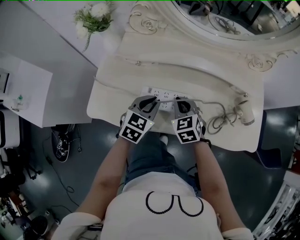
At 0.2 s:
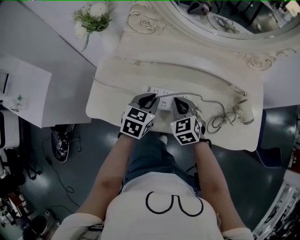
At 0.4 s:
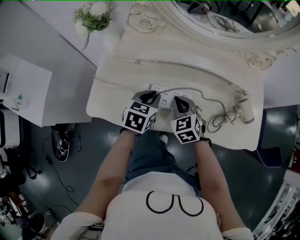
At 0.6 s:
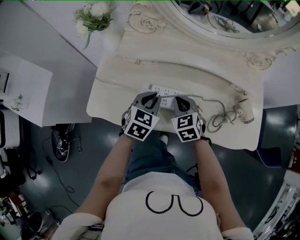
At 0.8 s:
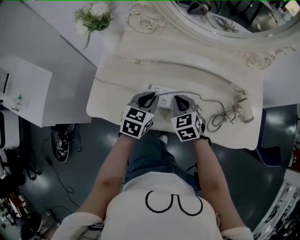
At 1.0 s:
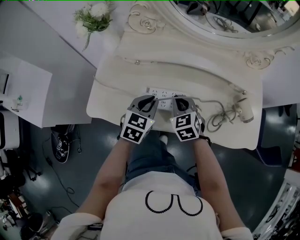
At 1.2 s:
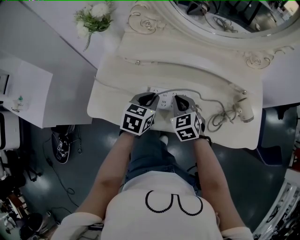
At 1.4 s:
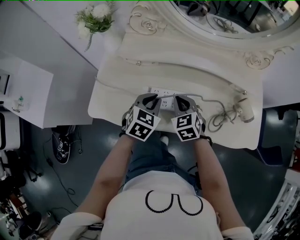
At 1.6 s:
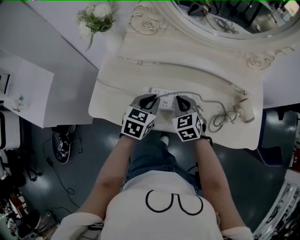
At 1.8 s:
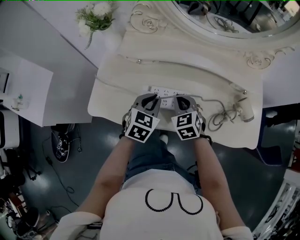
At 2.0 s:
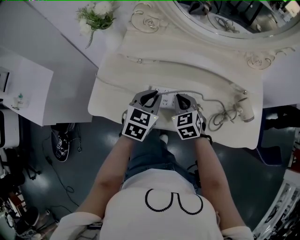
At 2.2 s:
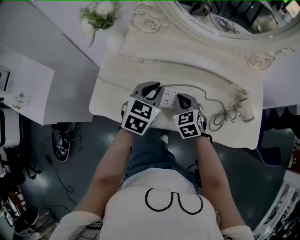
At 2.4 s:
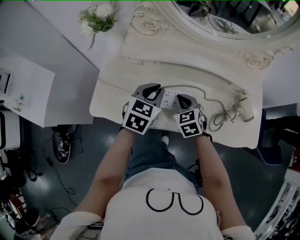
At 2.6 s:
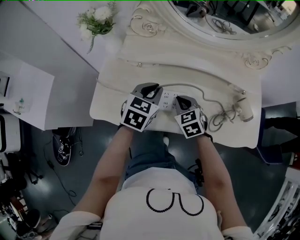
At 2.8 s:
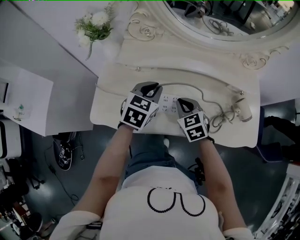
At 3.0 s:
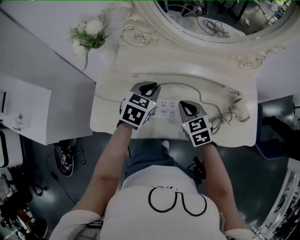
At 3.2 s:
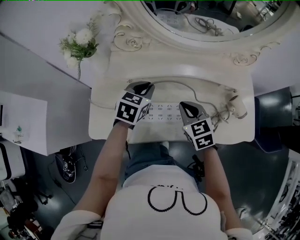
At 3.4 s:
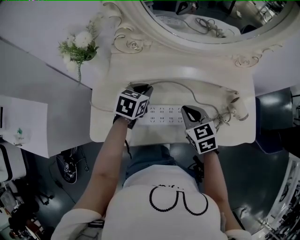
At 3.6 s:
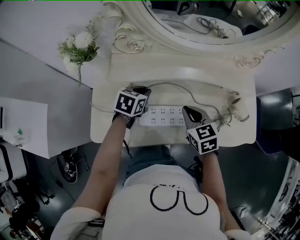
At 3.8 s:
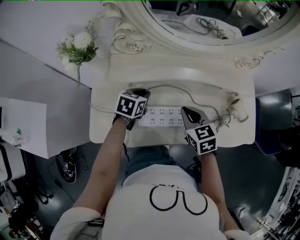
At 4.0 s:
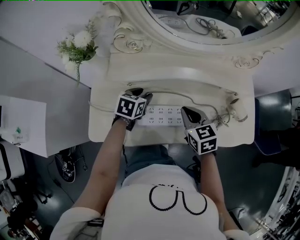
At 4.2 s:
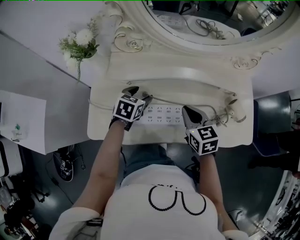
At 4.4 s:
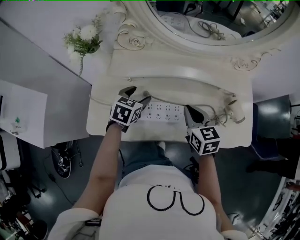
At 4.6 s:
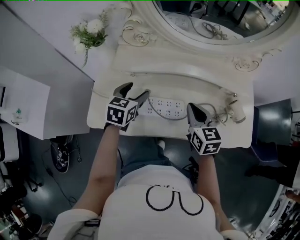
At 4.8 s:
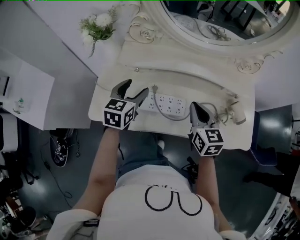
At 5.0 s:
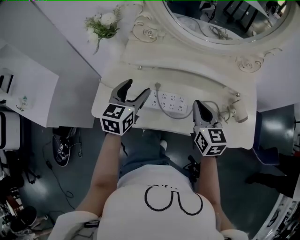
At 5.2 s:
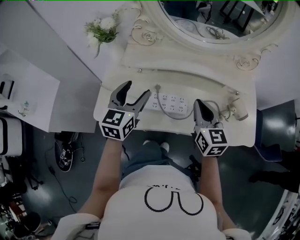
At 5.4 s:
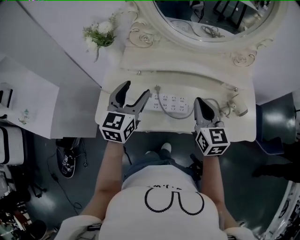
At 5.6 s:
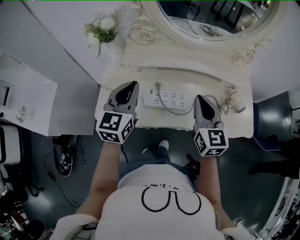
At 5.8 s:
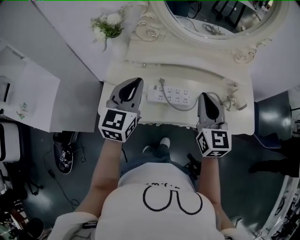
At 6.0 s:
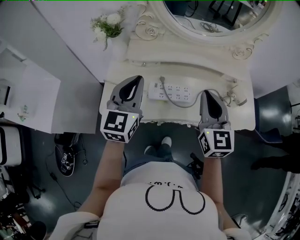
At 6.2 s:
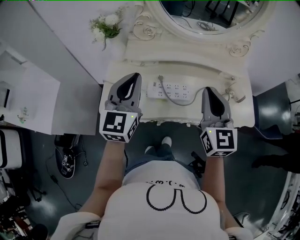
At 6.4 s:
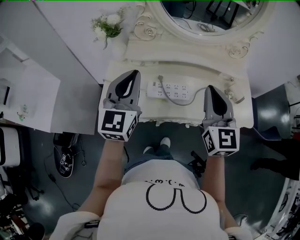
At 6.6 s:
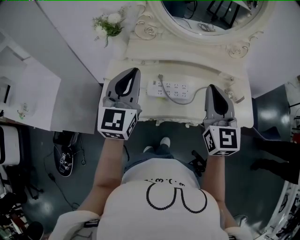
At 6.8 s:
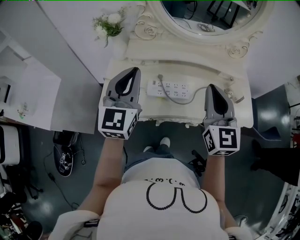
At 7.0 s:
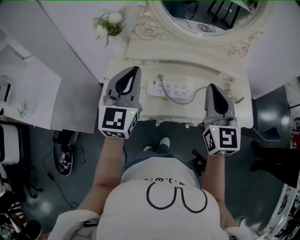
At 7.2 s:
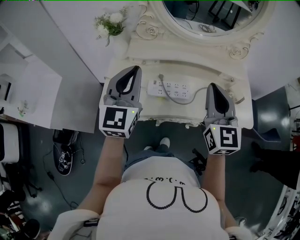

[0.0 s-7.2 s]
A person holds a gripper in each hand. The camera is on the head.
0.0 to 1.4 s: The grippers stay close to where they were, moving slightly.
1.4 to 2.8 s: The left gripper heads upward and forward, covering some 10 cm.
2.8 to 4.4 s: The left gripper goes about 5 cm downward, and opens its fingers, while the right gripper is displaced upward and to the right by approximately 10 cm, and rotates approximately 20 degrees.
4.4 to 5.8 s: The two grippers go approximately 20 cm upward and backward. The right gripper rotates roughly 30 degrees. Meanwhile the left gripper tilts its fingers some 30 degrees upward, and closes.
5.8 to 7.2 s: The two grippers go roughly 5 cm upward.

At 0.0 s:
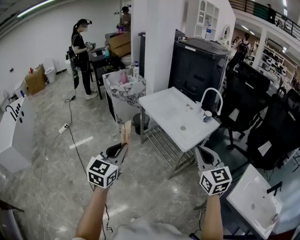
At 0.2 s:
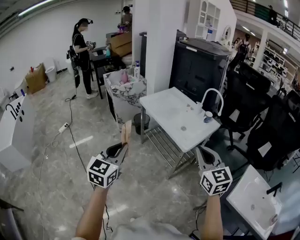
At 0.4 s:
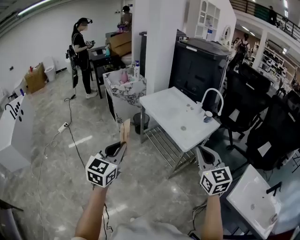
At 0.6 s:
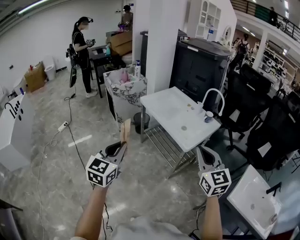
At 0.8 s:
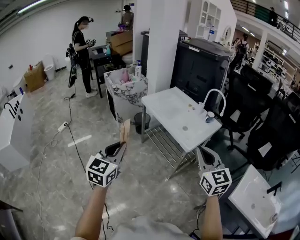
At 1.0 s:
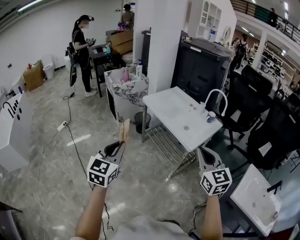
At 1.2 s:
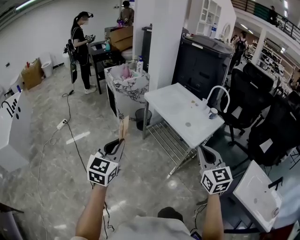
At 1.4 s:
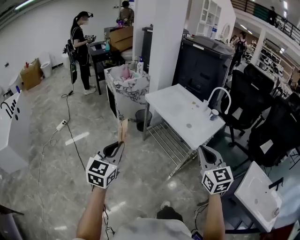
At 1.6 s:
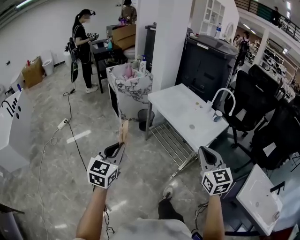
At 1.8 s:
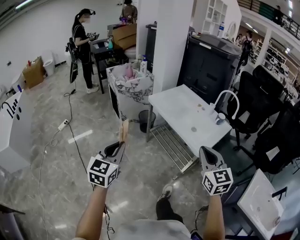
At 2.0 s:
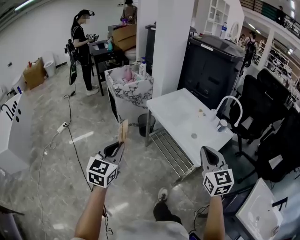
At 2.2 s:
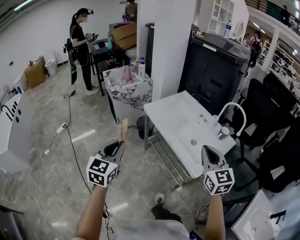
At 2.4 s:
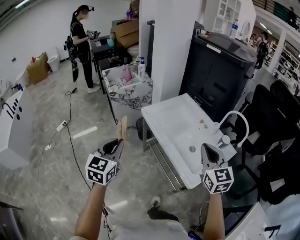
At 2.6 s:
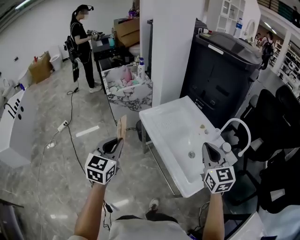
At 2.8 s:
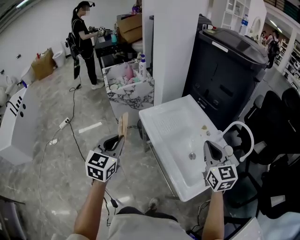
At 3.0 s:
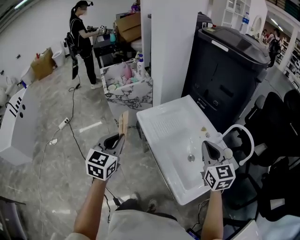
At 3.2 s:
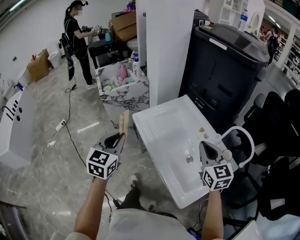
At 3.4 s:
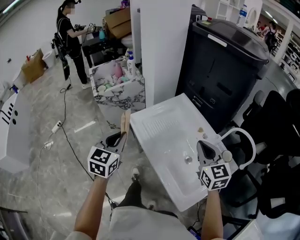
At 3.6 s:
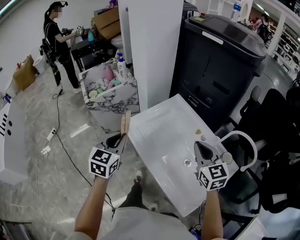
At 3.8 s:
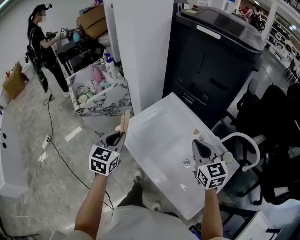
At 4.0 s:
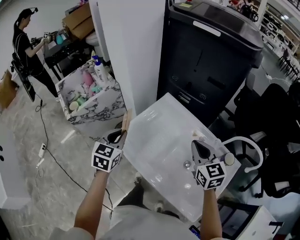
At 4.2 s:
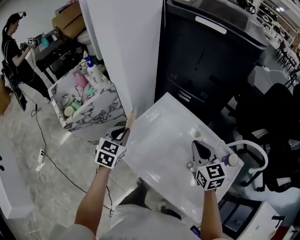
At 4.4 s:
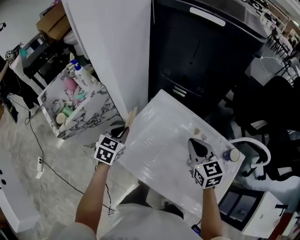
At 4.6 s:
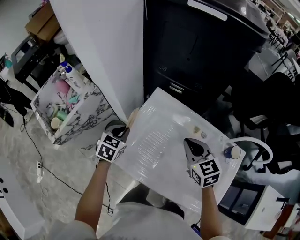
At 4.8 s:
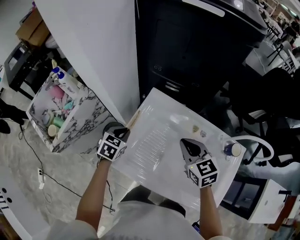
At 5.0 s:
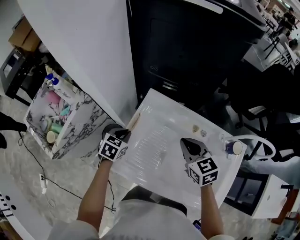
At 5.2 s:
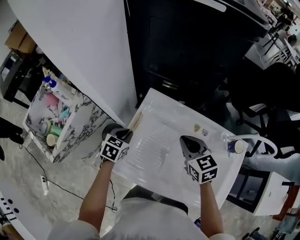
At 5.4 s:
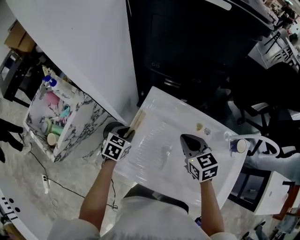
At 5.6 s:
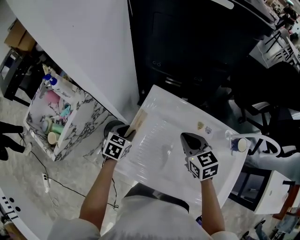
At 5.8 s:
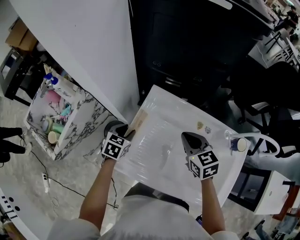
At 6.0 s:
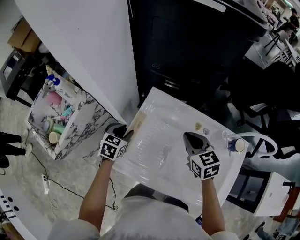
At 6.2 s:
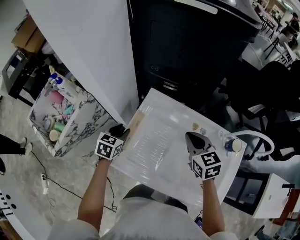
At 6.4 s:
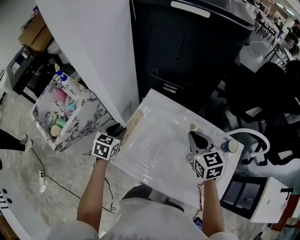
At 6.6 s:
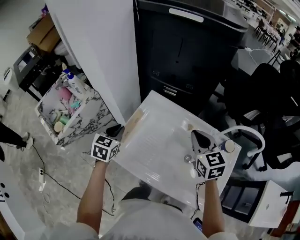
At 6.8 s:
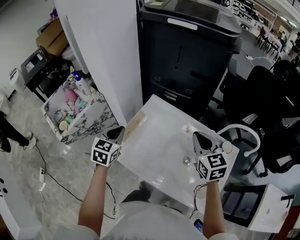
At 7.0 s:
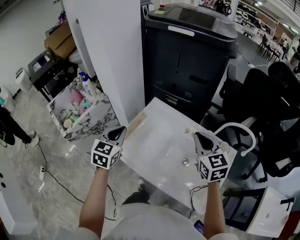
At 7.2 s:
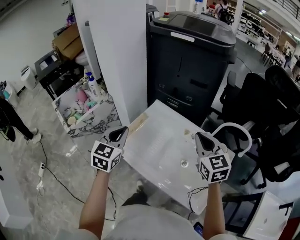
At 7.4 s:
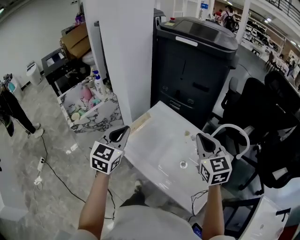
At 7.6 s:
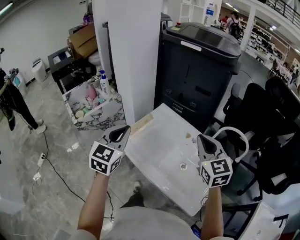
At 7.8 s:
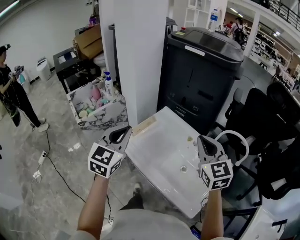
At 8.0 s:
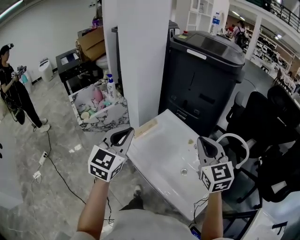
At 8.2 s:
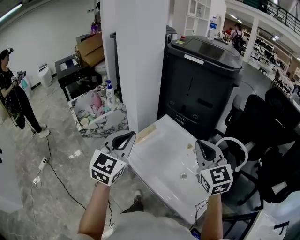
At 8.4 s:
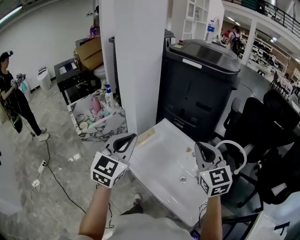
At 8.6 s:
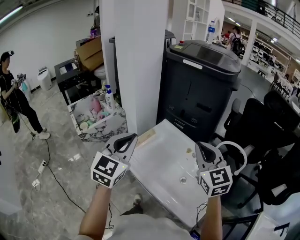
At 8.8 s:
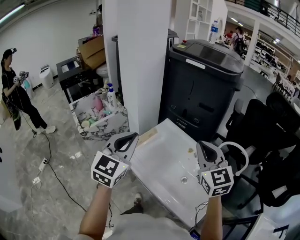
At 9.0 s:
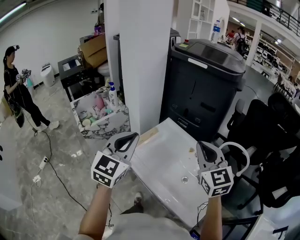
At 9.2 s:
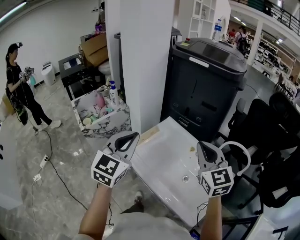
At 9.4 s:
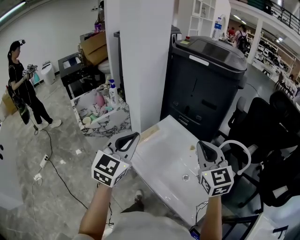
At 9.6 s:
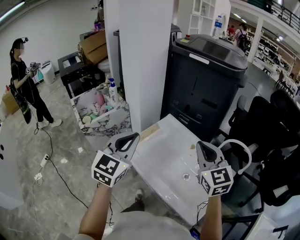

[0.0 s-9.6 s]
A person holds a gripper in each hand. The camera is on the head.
0.0 to 1.6 s: The two grippers go some 10 cm to the left.
1.6 to 3.2 s: The pair of grippers is taken forward, some 50 cm.
3.2 to 4.8 s: The left gripper changes place by about 50 cm, and swivels about 50 degrees, while the right gripper changes place by about 25 cm, and turns by some 30 degrees.
4.8 to 6.4 s: The right gripper heads to the right, covering some 5 cm, while the left gripper opens its fingers.
6.4 to 8.0 s: The right gripper heads upward and backward, covering about 25 cm, and swivels approximately 30 degrees; the left gripper shifts roughly 40 cm upward and backward, angles its fingers upward, by approximately 30 degrees, and closes up.
8.0 to 9.6 s: The grippers make only small movements.

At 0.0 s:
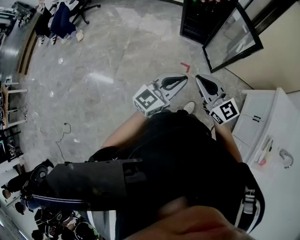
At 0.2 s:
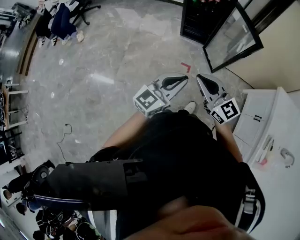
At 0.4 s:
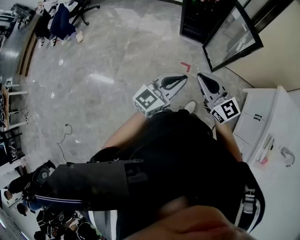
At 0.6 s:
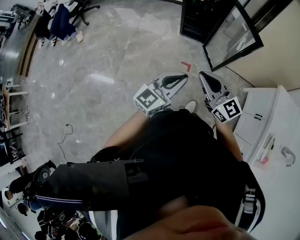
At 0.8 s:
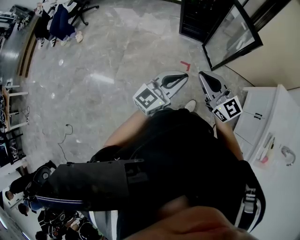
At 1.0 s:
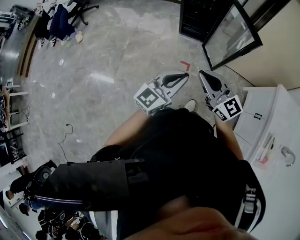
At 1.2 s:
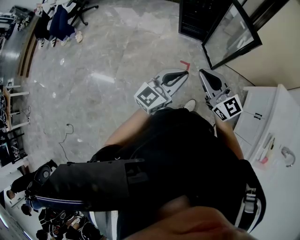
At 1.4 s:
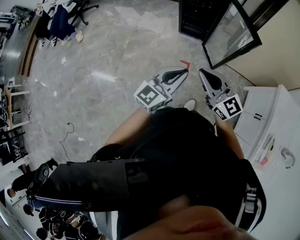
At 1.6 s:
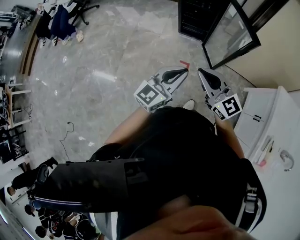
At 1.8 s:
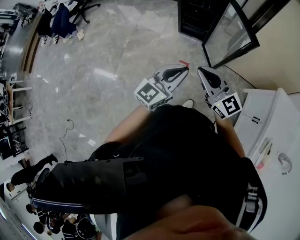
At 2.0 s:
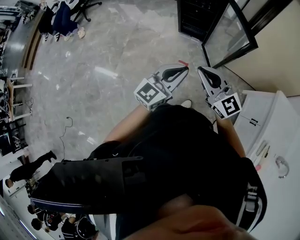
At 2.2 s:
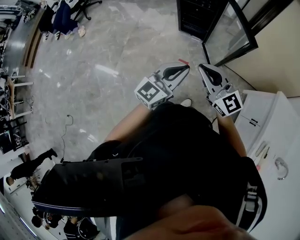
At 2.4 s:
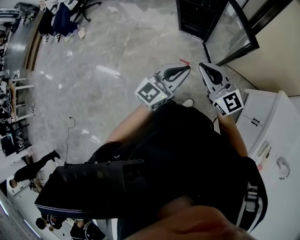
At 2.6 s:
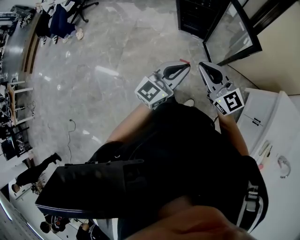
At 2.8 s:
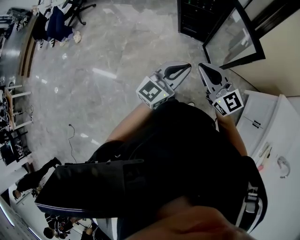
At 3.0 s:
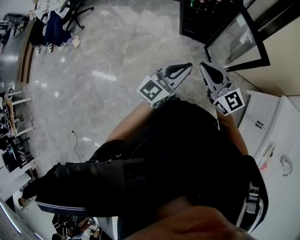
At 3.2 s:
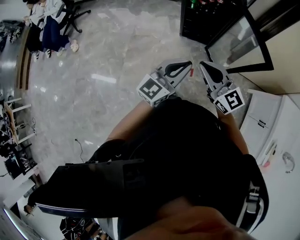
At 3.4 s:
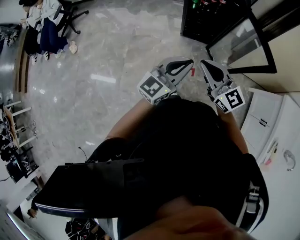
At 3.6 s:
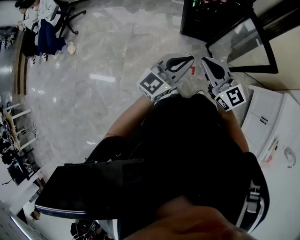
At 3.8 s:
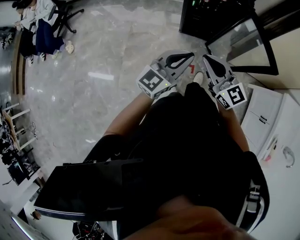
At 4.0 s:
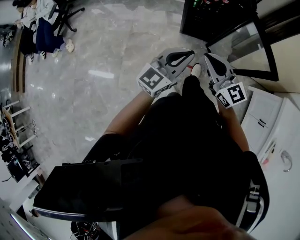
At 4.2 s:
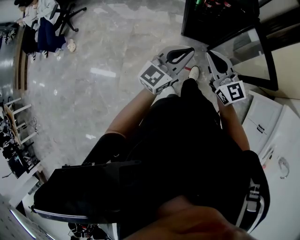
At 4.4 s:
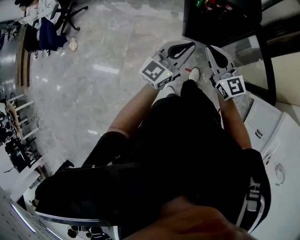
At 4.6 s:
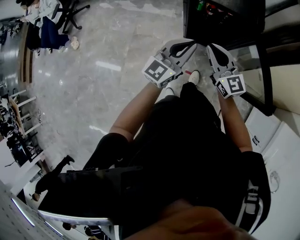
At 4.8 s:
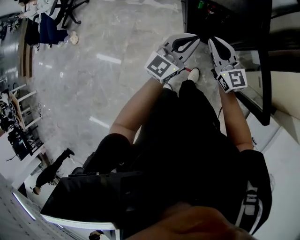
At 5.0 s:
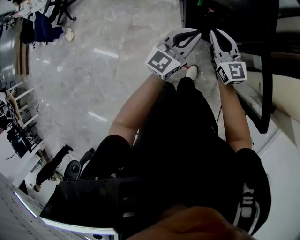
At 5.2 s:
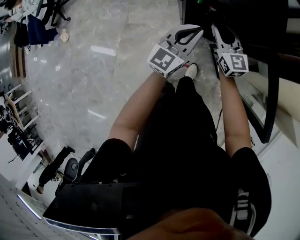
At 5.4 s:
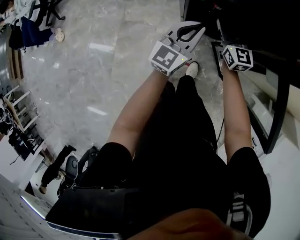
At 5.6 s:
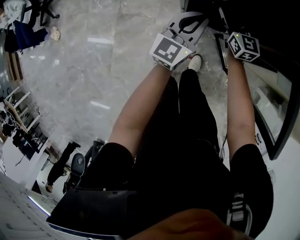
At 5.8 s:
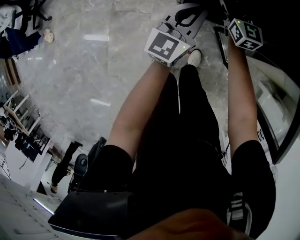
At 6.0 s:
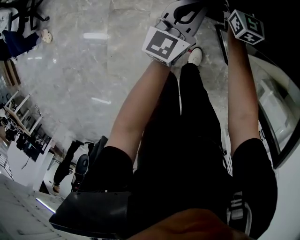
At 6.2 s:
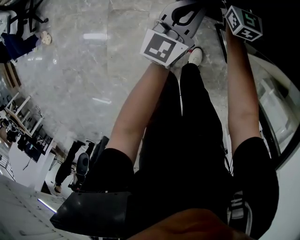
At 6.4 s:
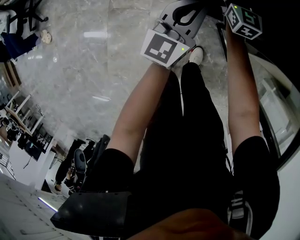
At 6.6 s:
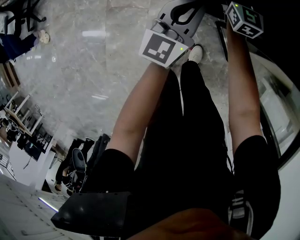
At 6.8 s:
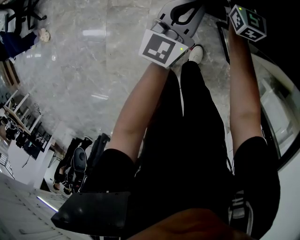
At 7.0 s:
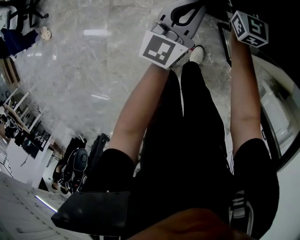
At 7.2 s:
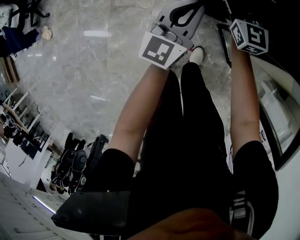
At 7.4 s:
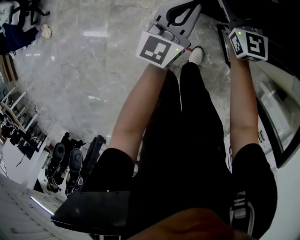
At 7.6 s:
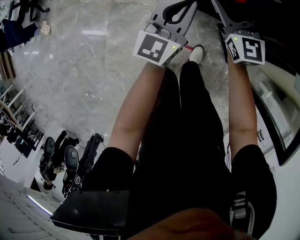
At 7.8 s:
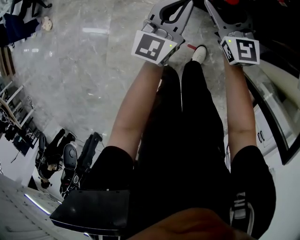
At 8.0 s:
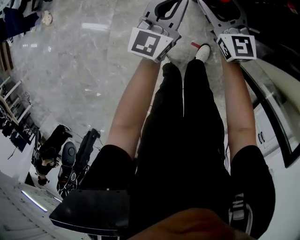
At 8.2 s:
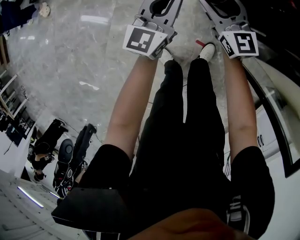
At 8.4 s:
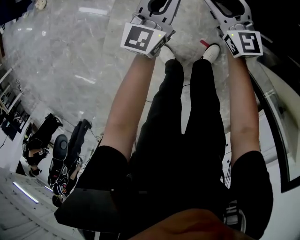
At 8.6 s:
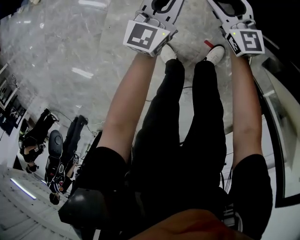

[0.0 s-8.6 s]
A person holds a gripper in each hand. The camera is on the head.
0.0 to 1.4 s: The left gripper ends up some 5 cm from where it was. Meanwhile the right gripper moves some 5 cm.
1.4 to 2.8 s: The two grippers go approximately 10 cm forward.
2.8 to 4.4 s: Both grippers travel together forward, roughly 30 cm.
4.4 to 5.8 s: The two grippers go about 40 cm forward and downward. The right gripper changes its angle by some 20 degrees, and opens its fingers.
5.8 to 7.2 s: The grippers move only a little.
7.2 to 8.6 s: The right gripper goes roughly 35 cm to the left, downward and backward, and swivels some 30 degrees. Meanwhile the left gripper heads to the left and downward, covering approximately 35 cm.
